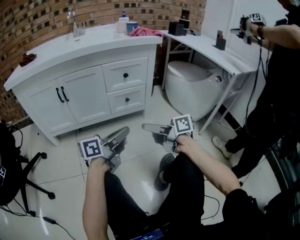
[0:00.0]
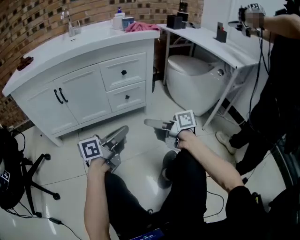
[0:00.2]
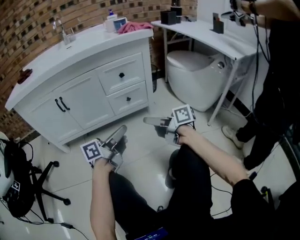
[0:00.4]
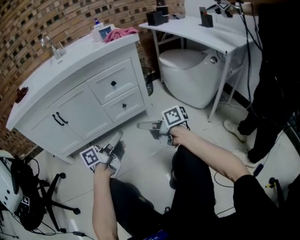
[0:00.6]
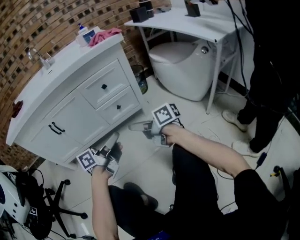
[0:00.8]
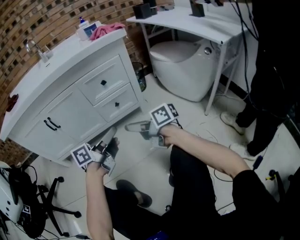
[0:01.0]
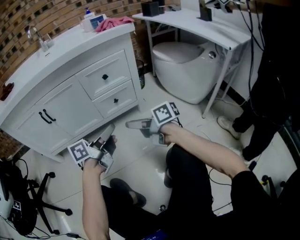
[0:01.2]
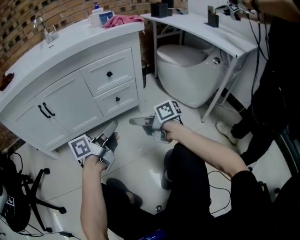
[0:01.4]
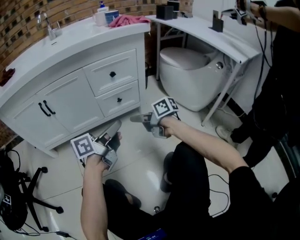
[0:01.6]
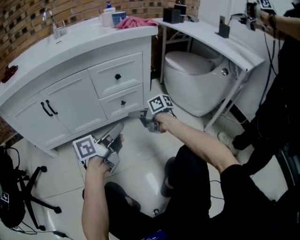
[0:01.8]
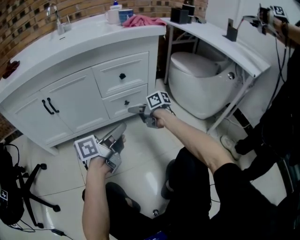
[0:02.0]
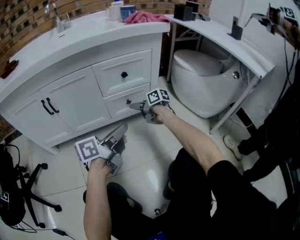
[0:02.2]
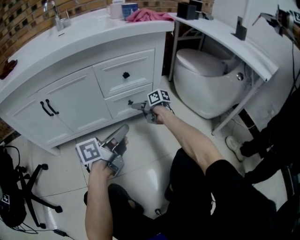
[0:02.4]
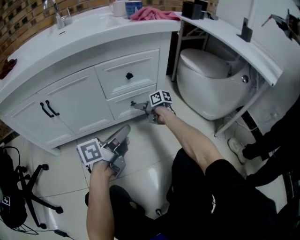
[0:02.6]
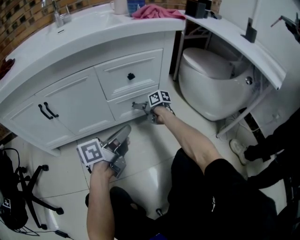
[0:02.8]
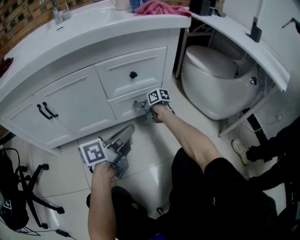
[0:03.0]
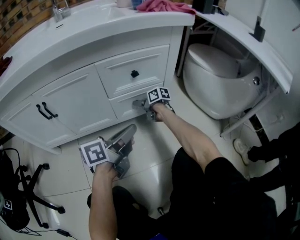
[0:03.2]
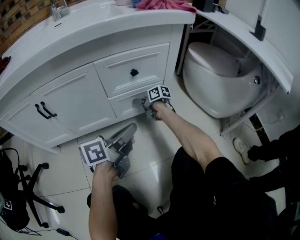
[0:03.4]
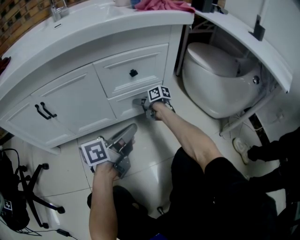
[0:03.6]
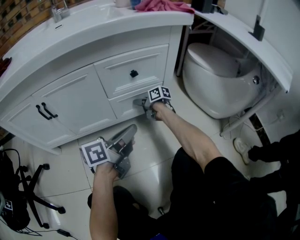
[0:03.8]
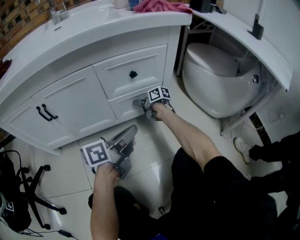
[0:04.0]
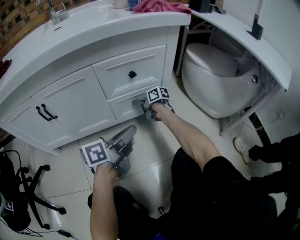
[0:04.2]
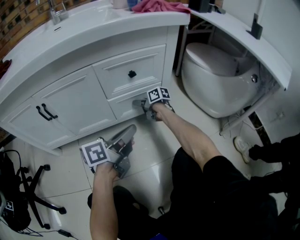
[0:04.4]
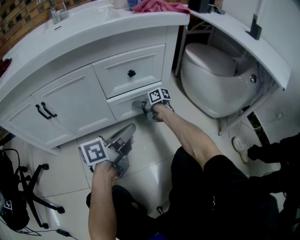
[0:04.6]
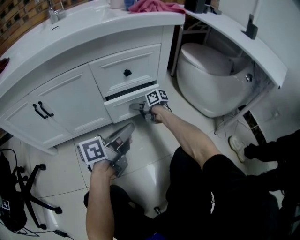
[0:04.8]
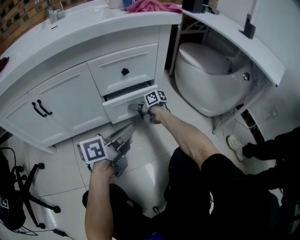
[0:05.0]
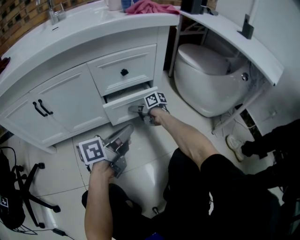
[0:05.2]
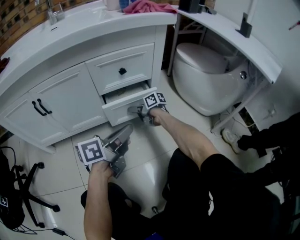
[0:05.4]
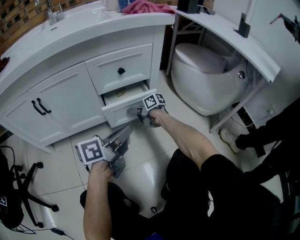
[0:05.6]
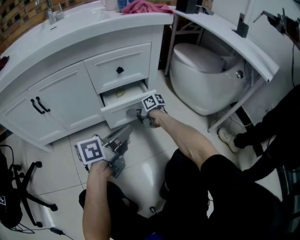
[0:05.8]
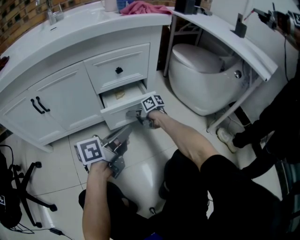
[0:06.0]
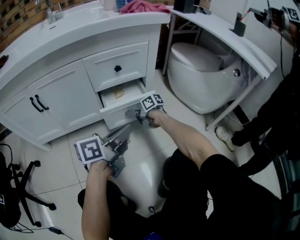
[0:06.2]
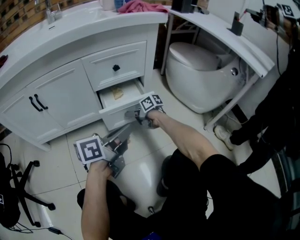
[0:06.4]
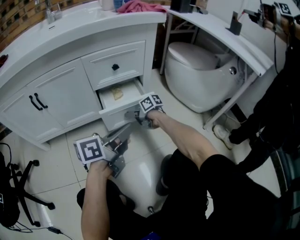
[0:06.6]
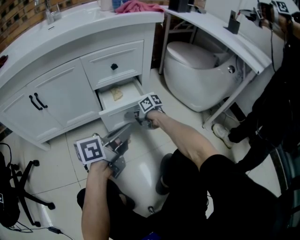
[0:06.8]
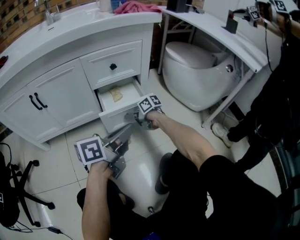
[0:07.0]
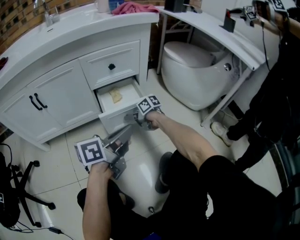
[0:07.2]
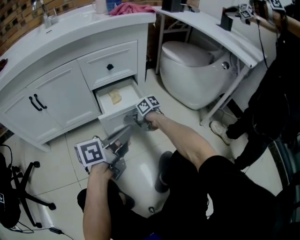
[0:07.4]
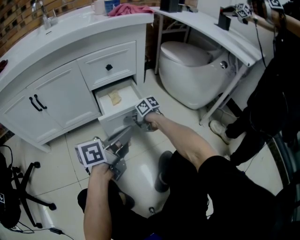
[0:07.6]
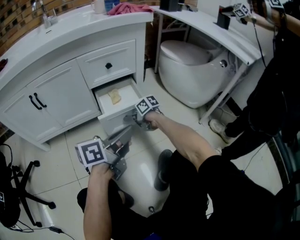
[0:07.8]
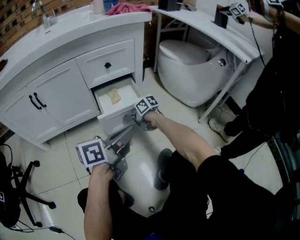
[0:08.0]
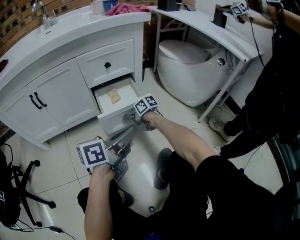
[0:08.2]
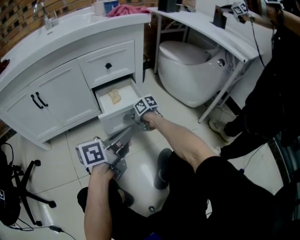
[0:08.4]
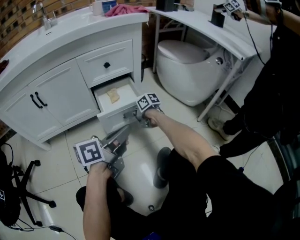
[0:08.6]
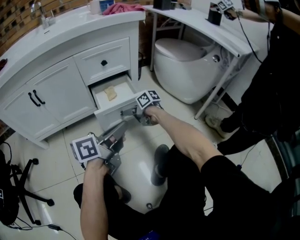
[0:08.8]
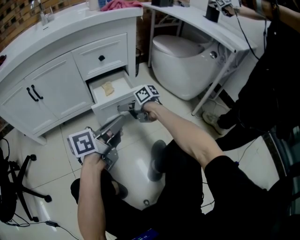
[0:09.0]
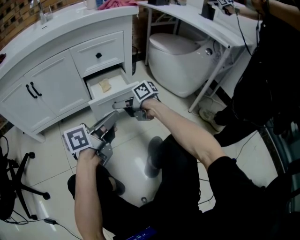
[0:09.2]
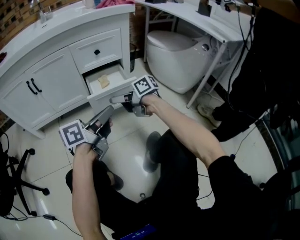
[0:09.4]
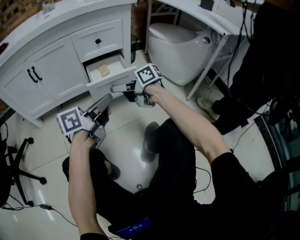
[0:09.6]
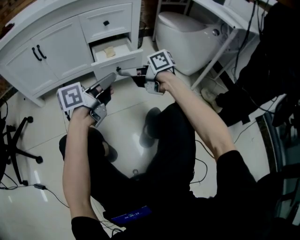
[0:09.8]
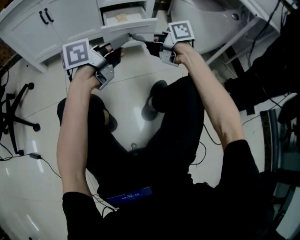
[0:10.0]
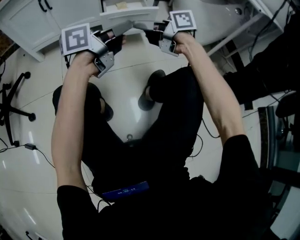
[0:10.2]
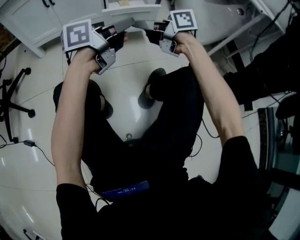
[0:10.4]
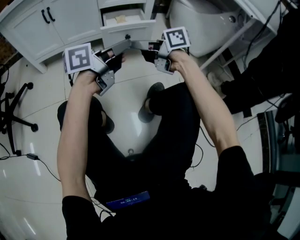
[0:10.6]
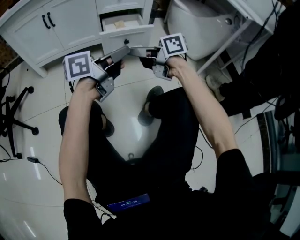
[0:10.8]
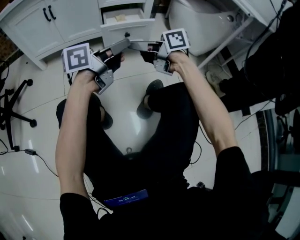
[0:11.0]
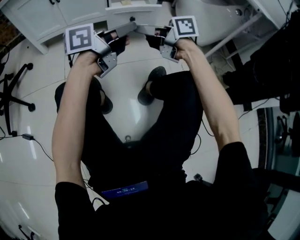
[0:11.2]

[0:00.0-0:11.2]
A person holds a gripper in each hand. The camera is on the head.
0:00.0 to 0:01.6: The left gripper goes roughly 10 cm forward, while the right gripper goes roughly 15 cm forward and downward.
0:01.6 to 0:03.2: The left gripper moves forward, roughly 10 cm. Meanwhile the right gripper moves forward and downward, approximately 30 cm.
0:03.2 to 0:04.8: The right gripper closes up.
0:04.8 to 0:06.4: The right gripper shifts by roughly 10 cm. Meanwhile the left gripper shifts by roughly 10 cm.
0:06.4 to 0:08.0: The right gripper moves roughly 5 cm, while the left gripper ends up some 10 cm from where it was.
0:08.0 to 0:09.6: The left gripper ends up about 5 cm from where it was, while the right gripper heads upward, covering approximately 20 cm, and changes its angle by roughly 20 degrees.
0:09.6 to 0:11.2: The right gripper ends up some 15 cm from where it was, while the left gripper ends up roughly 10 cm from where it was.

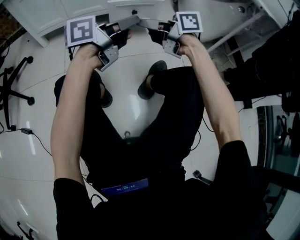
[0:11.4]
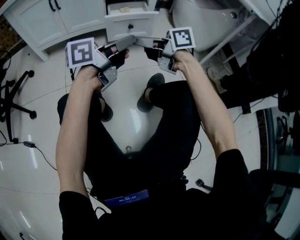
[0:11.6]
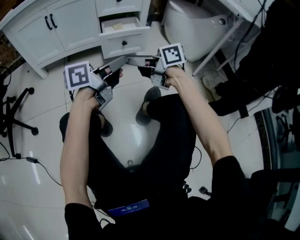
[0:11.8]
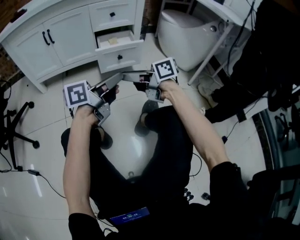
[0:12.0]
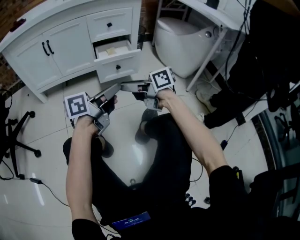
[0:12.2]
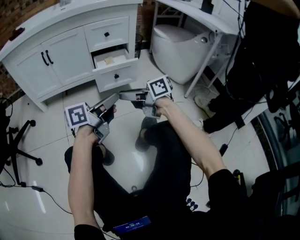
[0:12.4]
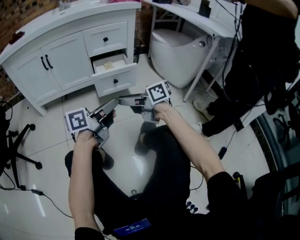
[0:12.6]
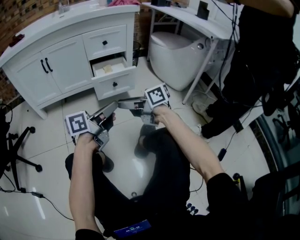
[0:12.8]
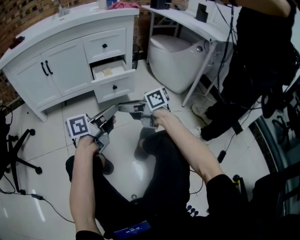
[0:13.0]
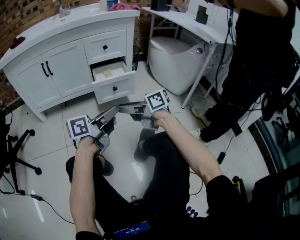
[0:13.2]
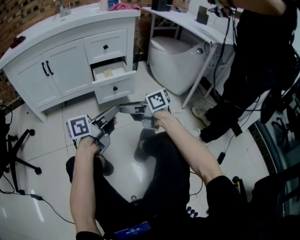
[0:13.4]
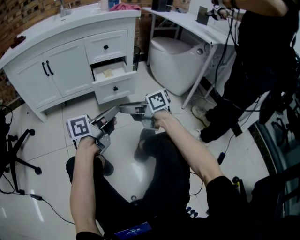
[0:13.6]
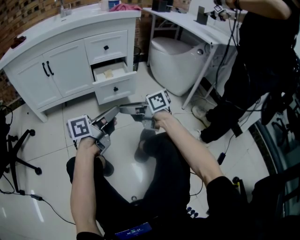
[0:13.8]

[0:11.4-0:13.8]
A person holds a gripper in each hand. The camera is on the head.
0:11.4 to 0:12.6: Both grippers stay about where they are.
0:12.6 to 0:13.8: Neither gripper changes place.

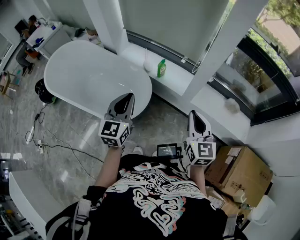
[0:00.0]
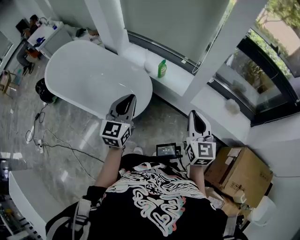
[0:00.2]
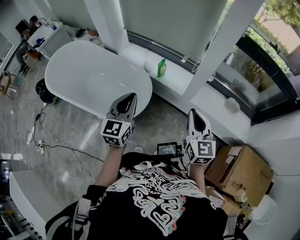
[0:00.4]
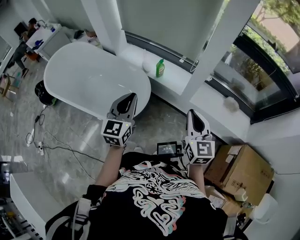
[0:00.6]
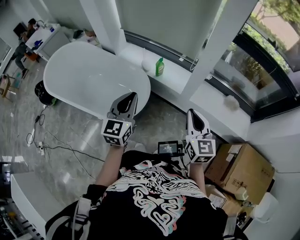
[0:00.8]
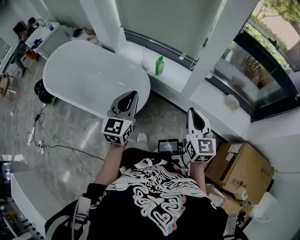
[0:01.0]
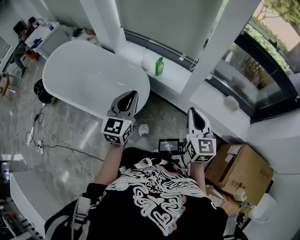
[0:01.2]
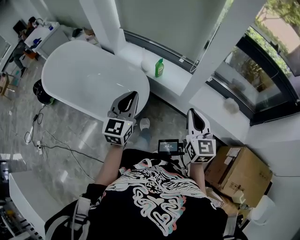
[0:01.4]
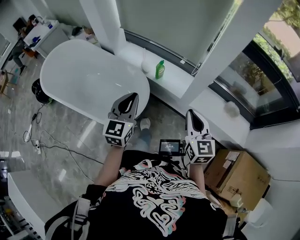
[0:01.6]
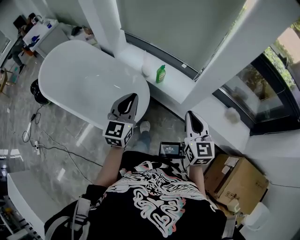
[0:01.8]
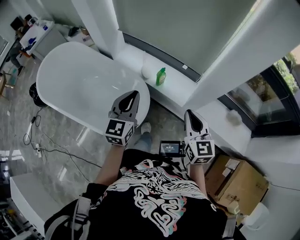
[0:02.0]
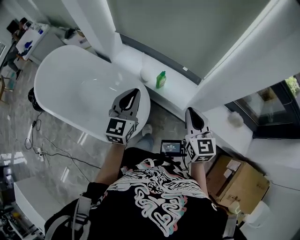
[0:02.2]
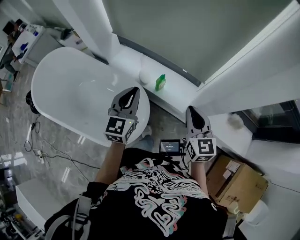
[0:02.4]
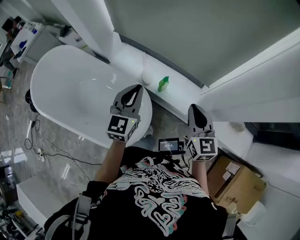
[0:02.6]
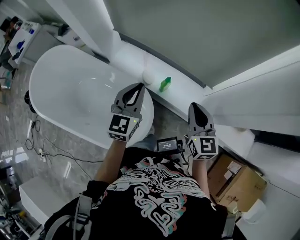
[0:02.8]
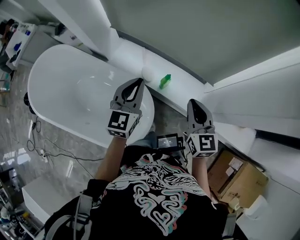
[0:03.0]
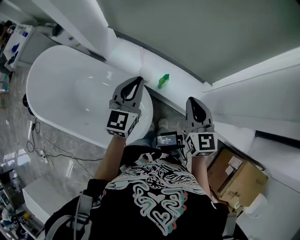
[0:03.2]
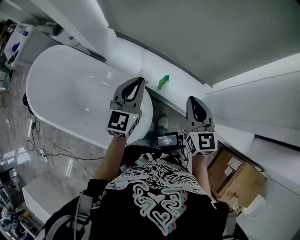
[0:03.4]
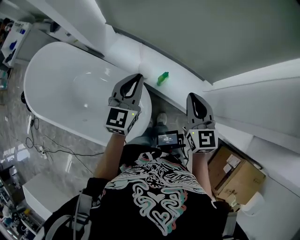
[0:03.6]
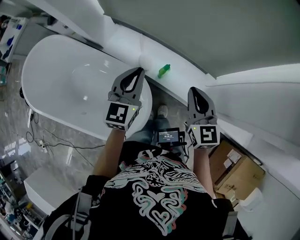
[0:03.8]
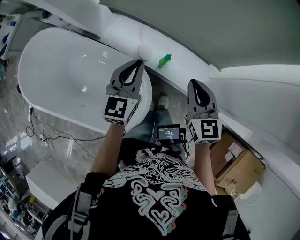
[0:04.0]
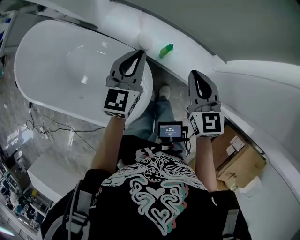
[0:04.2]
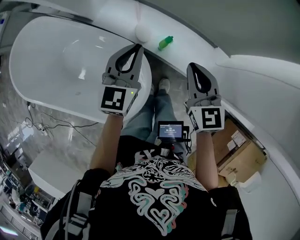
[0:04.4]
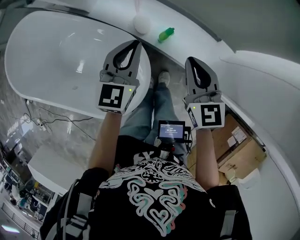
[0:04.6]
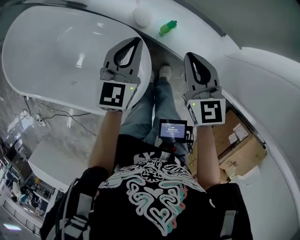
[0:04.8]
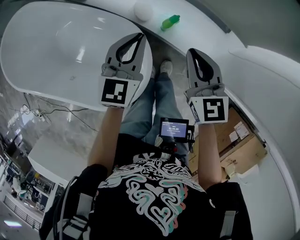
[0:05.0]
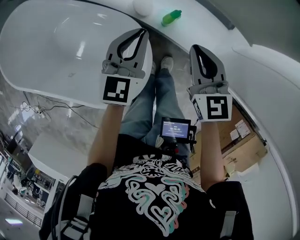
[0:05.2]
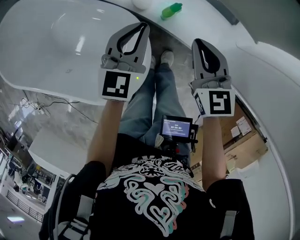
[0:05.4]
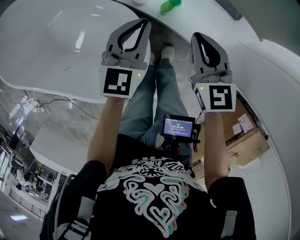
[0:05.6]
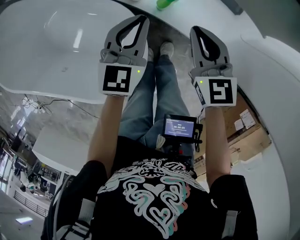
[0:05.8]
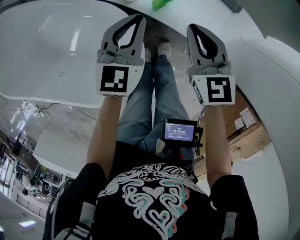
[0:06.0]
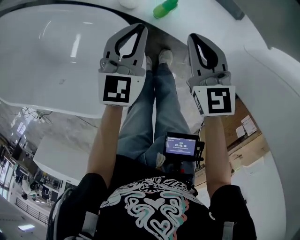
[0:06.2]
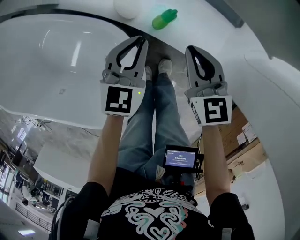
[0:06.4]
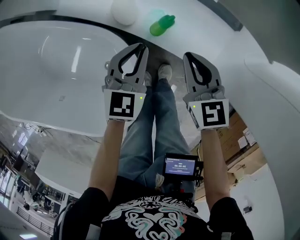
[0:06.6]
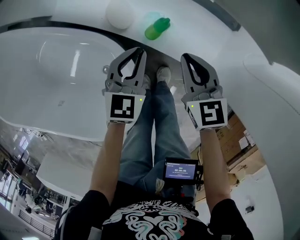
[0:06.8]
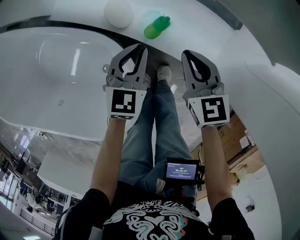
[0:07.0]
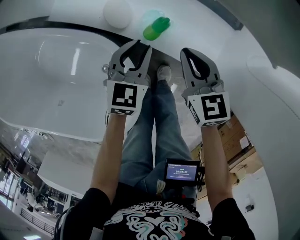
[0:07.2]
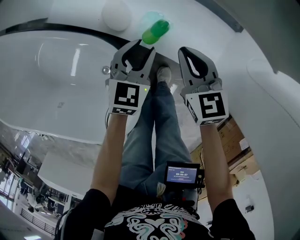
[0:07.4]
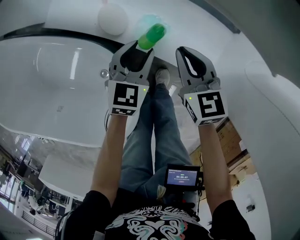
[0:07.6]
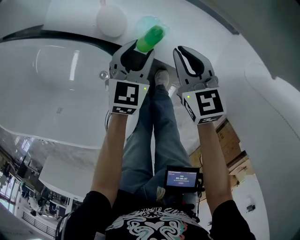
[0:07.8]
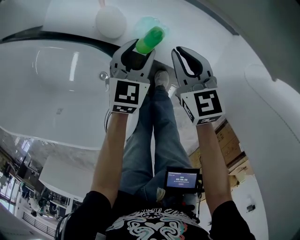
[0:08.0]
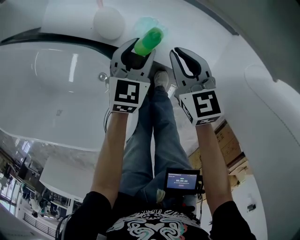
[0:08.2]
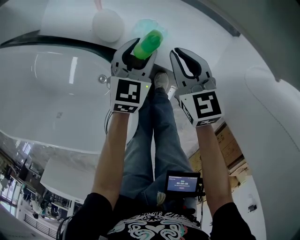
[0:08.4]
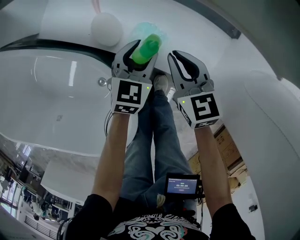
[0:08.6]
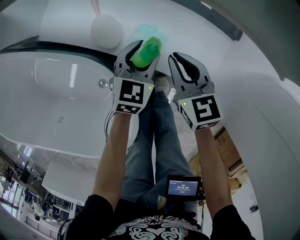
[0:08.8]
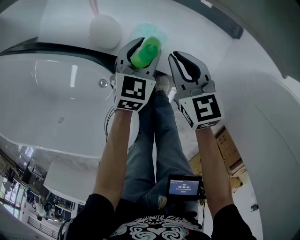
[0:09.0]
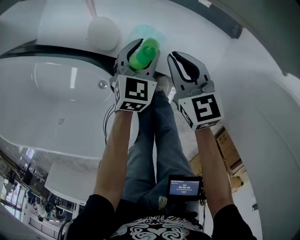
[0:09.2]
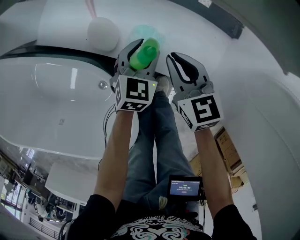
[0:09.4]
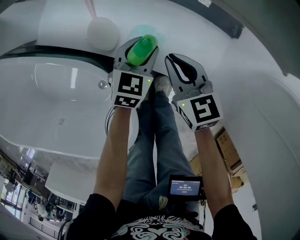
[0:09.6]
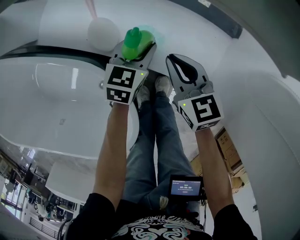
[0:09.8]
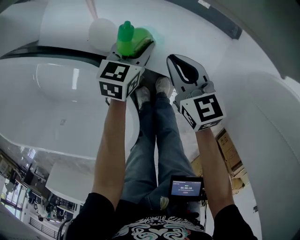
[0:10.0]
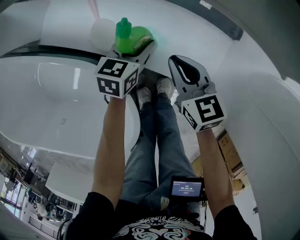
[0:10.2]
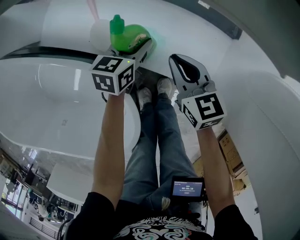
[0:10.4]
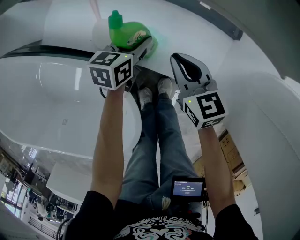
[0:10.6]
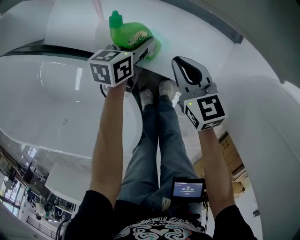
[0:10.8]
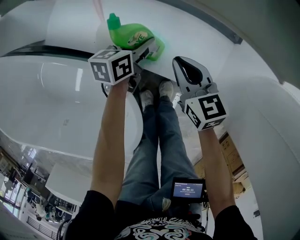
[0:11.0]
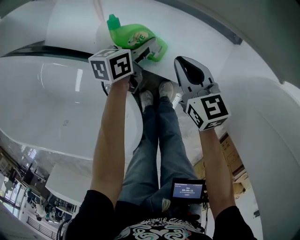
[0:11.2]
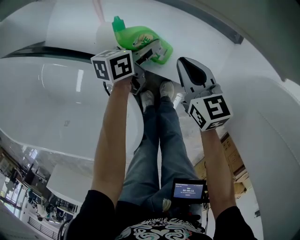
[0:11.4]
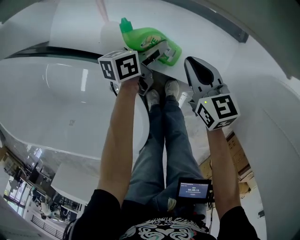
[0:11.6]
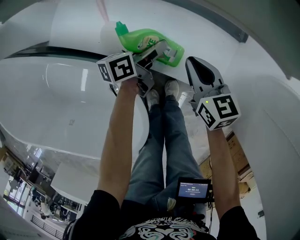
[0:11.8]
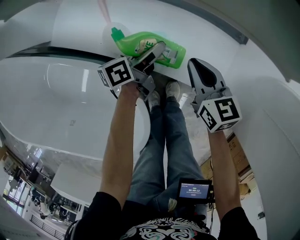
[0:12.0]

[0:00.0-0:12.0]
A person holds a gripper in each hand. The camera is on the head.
0:00.0 to 0:01.6: Both grippers travel together forward, roughly 5 cm.
0:01.6 to 0:03.0: Both grippers travel together forward, roughly 35 cm.
0:03.0 to 0:04.4: Both grippers travel together downward and forward, roughly 15 cm.
0:04.4 to 0:06.0: Both grippers travel together downward, some 20 cm.
0:06.0 to 0:07.6: The right gripper travels downward and forward by some 10 cm. Meanwhile the left gripper travels downward and to the right by roughly 15 cm, and opens up.
0:07.6 to 0:09.0: The right gripper shifts by about 5 cm. The left gripper shifts some 10 cm downward and forward.
0:09.0 to 0:10.4: The left gripper turns by some 20 degrees.
0:10.4 to 0:12.0: The left gripper rotates about 40 degrees.
